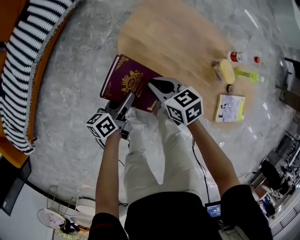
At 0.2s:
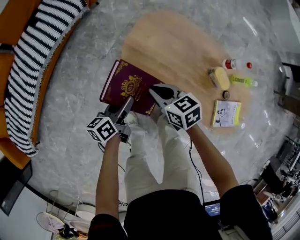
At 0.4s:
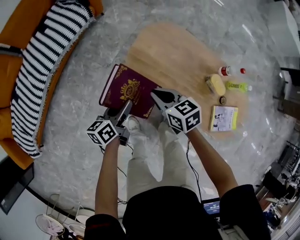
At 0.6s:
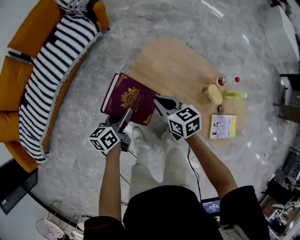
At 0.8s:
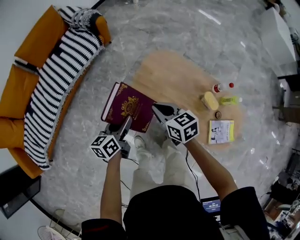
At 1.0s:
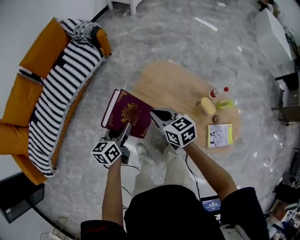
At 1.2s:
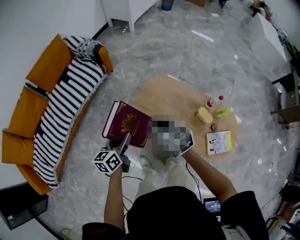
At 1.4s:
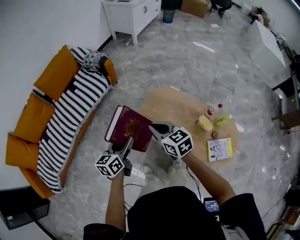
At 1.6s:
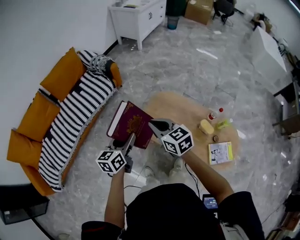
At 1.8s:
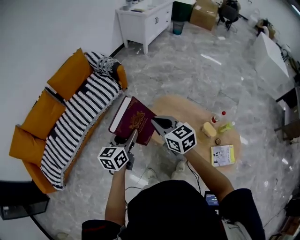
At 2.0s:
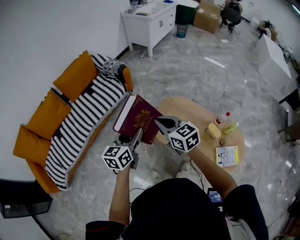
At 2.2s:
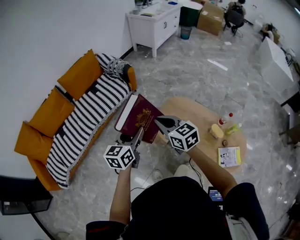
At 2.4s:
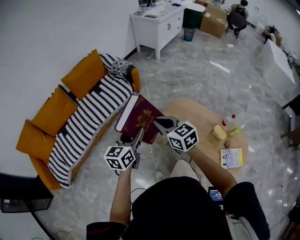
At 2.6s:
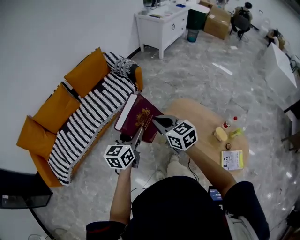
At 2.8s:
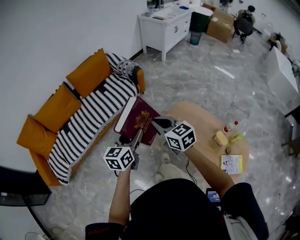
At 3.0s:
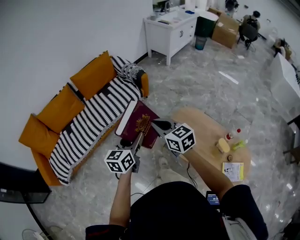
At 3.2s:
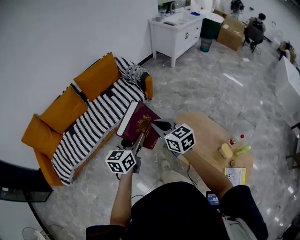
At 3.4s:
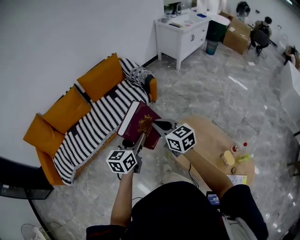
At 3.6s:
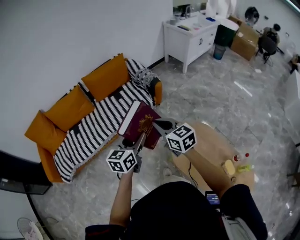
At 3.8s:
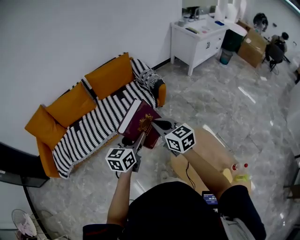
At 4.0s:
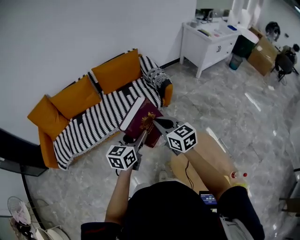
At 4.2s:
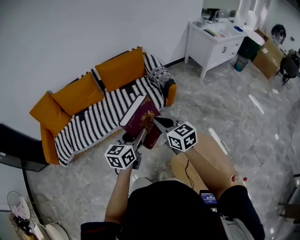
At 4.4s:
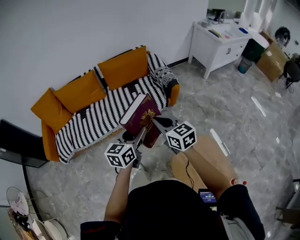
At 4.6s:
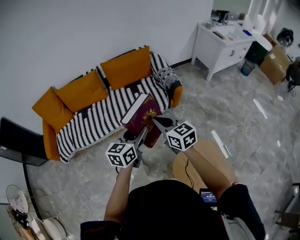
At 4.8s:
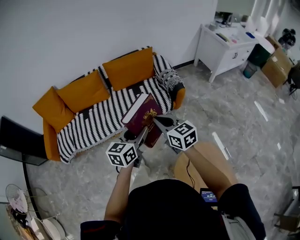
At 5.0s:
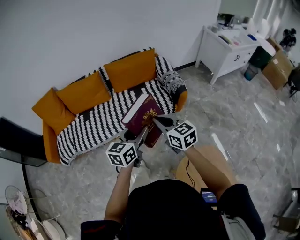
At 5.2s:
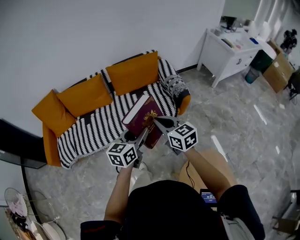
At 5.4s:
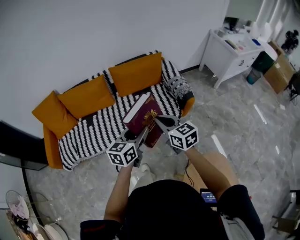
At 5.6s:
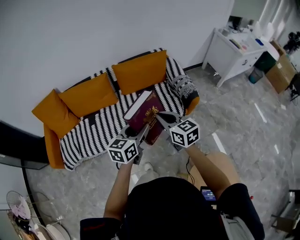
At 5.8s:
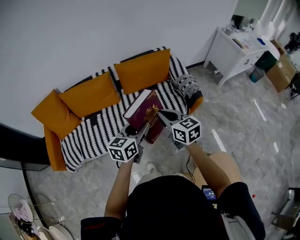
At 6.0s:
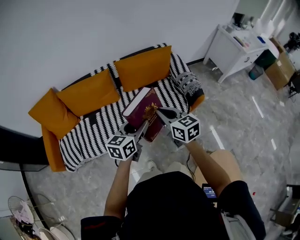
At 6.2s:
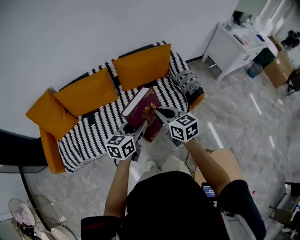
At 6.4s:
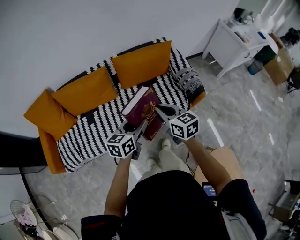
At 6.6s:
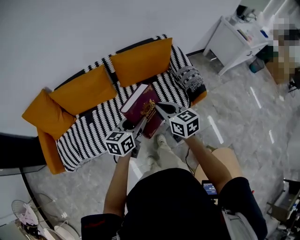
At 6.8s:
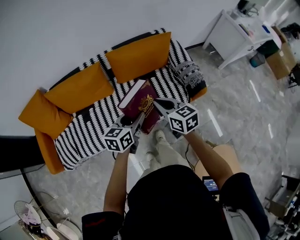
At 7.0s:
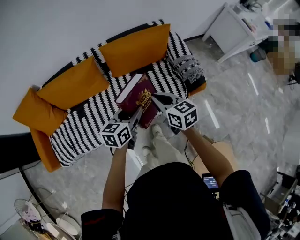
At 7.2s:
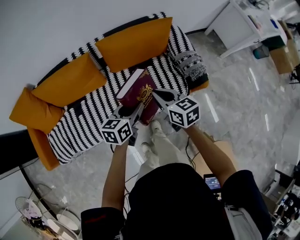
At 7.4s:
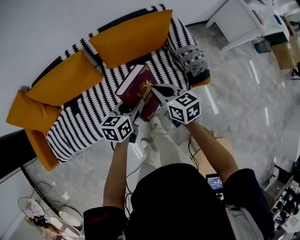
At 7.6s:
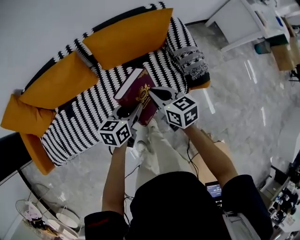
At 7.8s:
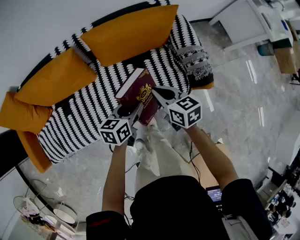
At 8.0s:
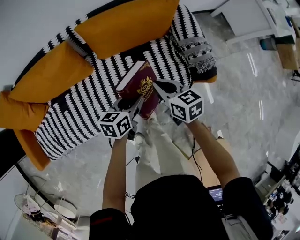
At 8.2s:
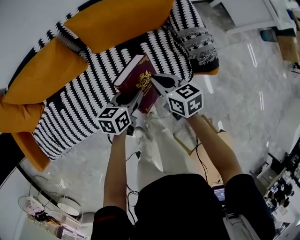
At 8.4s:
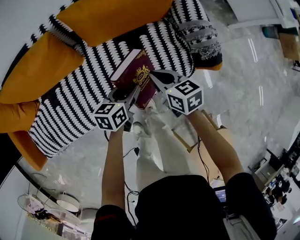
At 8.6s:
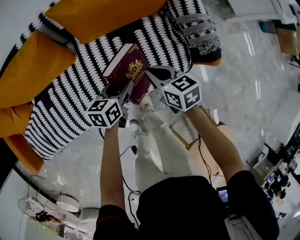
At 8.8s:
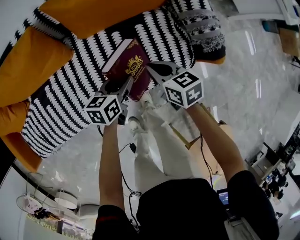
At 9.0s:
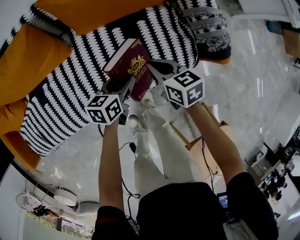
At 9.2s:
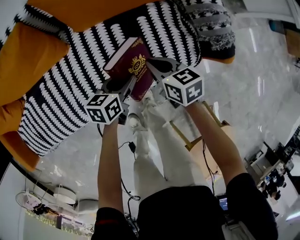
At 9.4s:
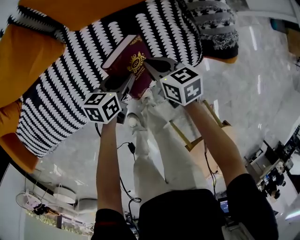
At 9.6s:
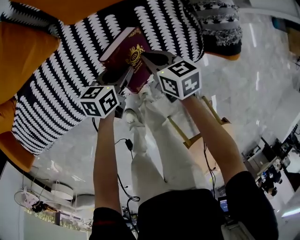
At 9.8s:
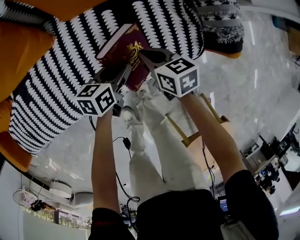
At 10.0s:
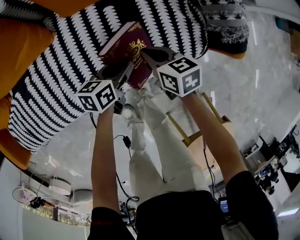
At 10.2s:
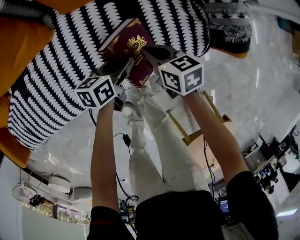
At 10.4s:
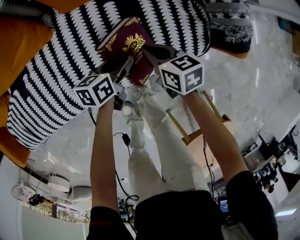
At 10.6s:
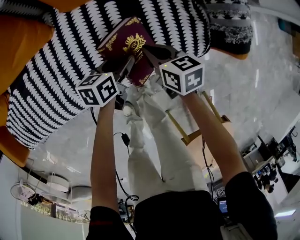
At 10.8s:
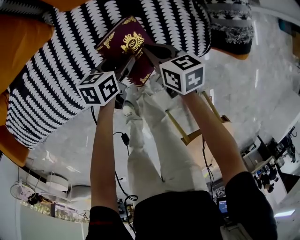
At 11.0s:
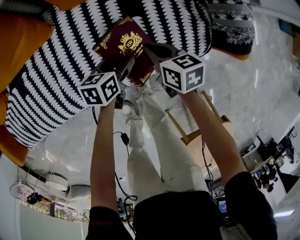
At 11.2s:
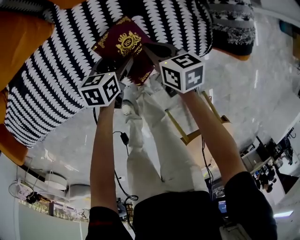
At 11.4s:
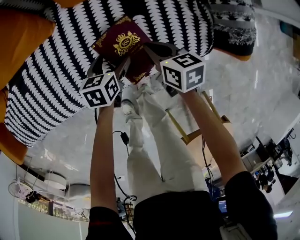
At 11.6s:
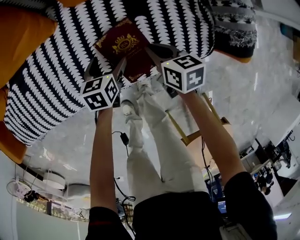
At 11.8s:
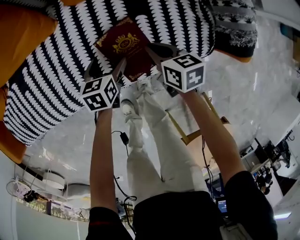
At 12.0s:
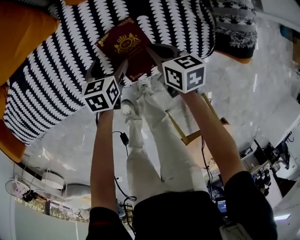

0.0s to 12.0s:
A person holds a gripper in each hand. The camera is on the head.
0.0s to 1.6s: The two grippers go about 35 cm upward. The right gripper changes its angle by roughly 30 degrees, while the left gripper swivels approximately 30 degrees.
1.6s to 3.0s: Both grippers move to the left and upward, approximately 15 cm.
3.0s to 4.4s: The grippers both shift forward by approximately 20 cm.
4.4s to 6.0s: The grippers both shift forward and to the left by some 35 cm.
6.0s to 7.6s: The two grippers go roughly 30 cm forward and downward.
7.6s to 9.0s: Both grippers travel together downward, about 20 cm.
9.0s to 10.4s: The grippers both shift downward by roughly 15 cm.
10.4s to 12.0s: The left gripper shifts about 10 cm to the left, rotates some 30 degrees, and opens up.

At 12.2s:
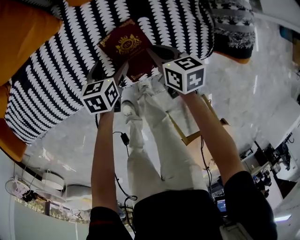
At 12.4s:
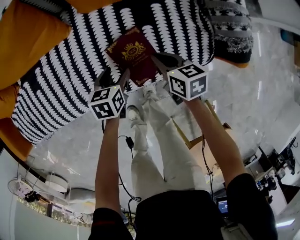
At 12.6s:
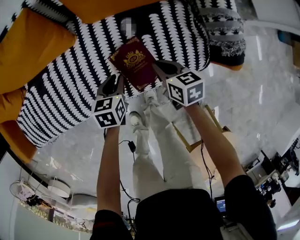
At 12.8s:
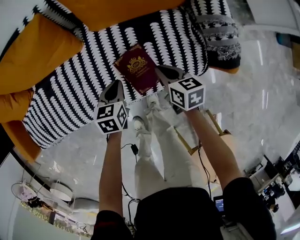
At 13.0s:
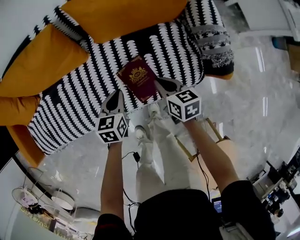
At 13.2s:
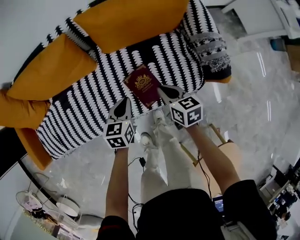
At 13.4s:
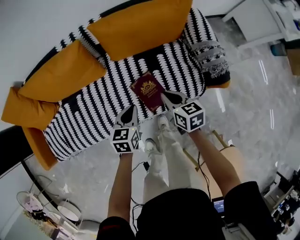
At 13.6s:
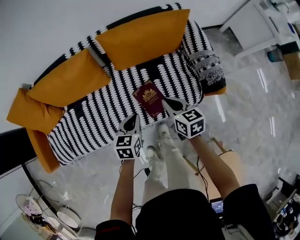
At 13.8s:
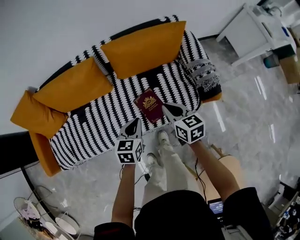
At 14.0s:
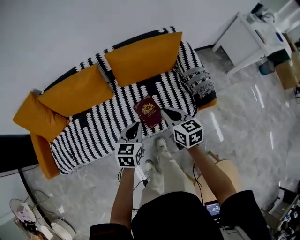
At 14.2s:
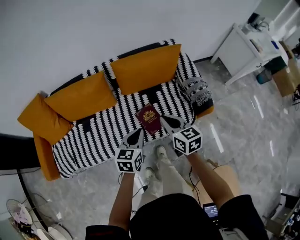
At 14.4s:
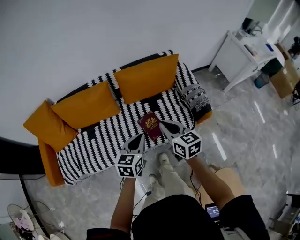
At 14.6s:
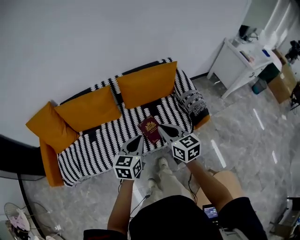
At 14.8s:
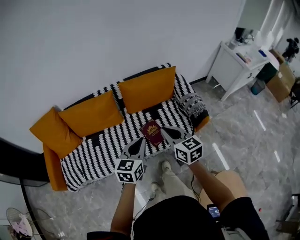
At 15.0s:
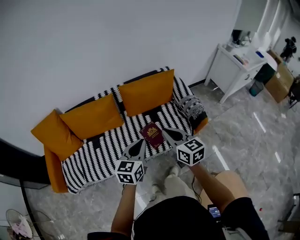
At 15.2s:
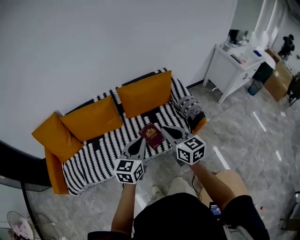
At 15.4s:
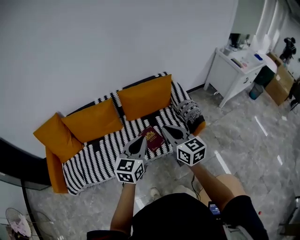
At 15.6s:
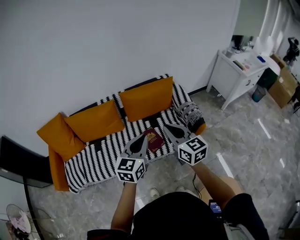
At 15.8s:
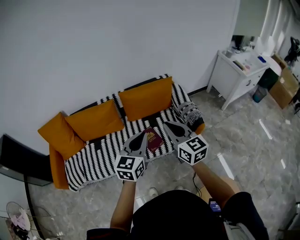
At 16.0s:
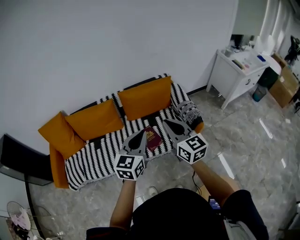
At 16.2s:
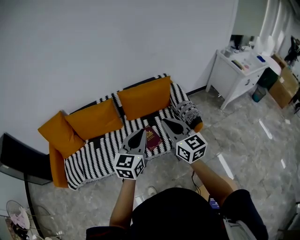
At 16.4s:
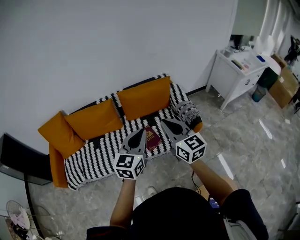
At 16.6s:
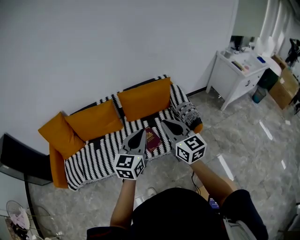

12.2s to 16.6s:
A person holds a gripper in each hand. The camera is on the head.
12.2s to 13.6s: Both grippers travel together upward, roughly 25 cm. The left gripper closes its fingers.
13.6s to 15.2s: The grippers both shift upward and backward by about 35 cm. The left gripper swivels roughly 30 degrees, while the right gripper rotates roughly 30 degrees.
15.2s to 16.6s: Both grippers move upward and to the right, some 10 cm.

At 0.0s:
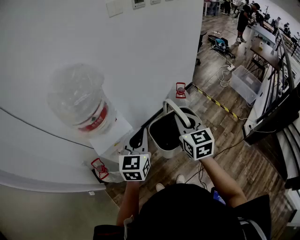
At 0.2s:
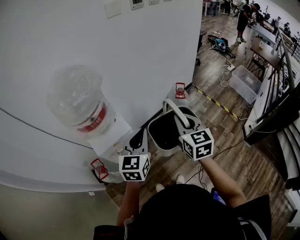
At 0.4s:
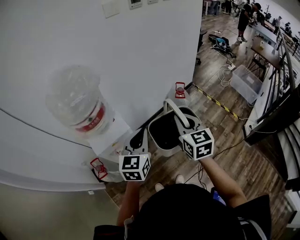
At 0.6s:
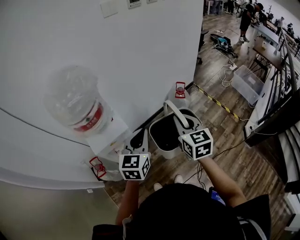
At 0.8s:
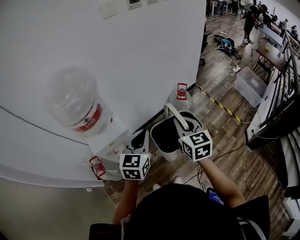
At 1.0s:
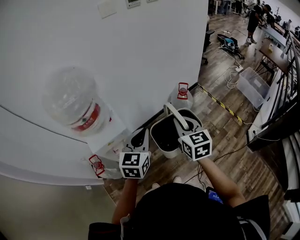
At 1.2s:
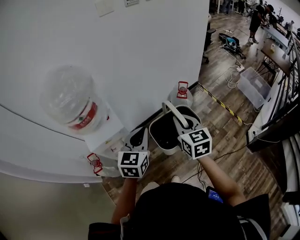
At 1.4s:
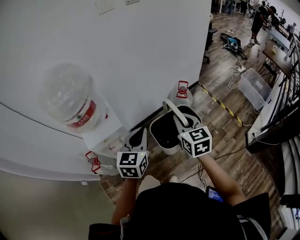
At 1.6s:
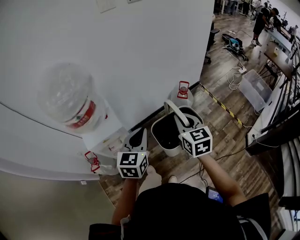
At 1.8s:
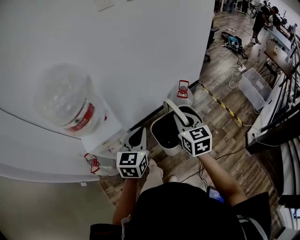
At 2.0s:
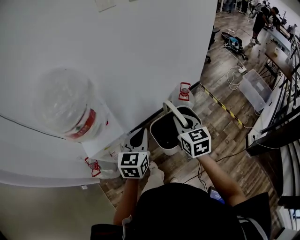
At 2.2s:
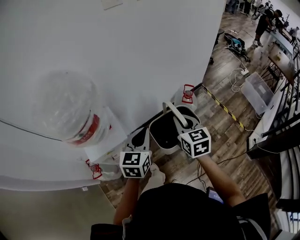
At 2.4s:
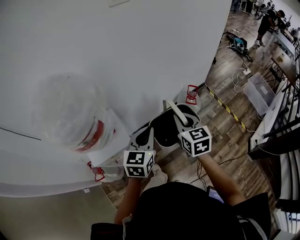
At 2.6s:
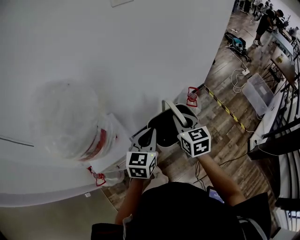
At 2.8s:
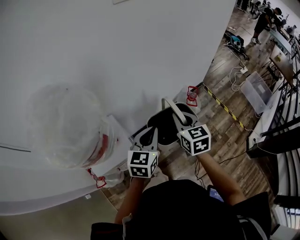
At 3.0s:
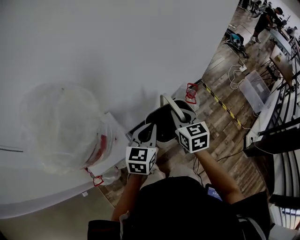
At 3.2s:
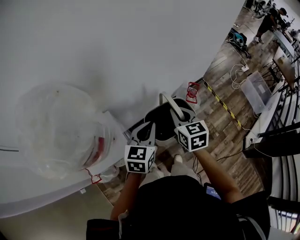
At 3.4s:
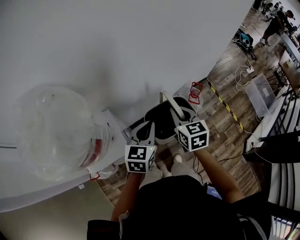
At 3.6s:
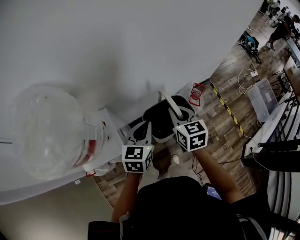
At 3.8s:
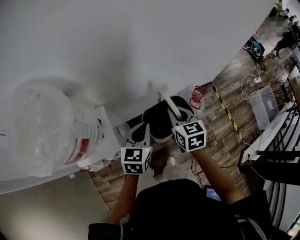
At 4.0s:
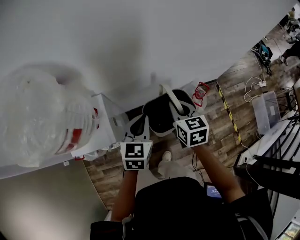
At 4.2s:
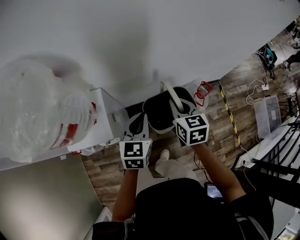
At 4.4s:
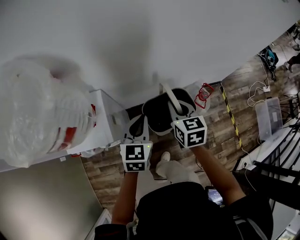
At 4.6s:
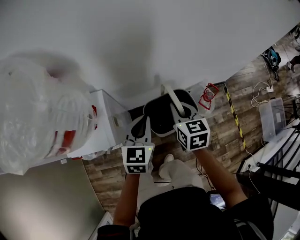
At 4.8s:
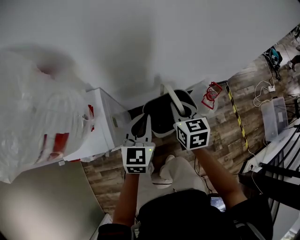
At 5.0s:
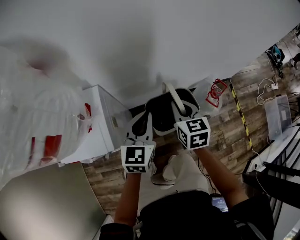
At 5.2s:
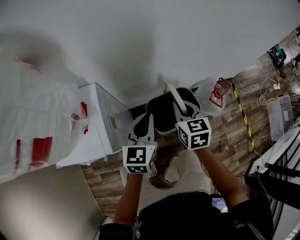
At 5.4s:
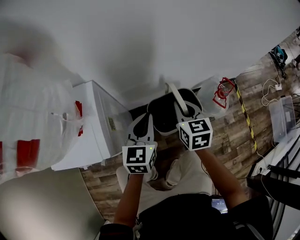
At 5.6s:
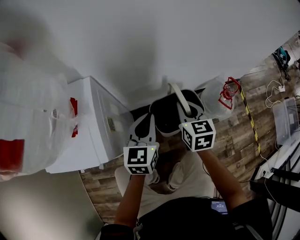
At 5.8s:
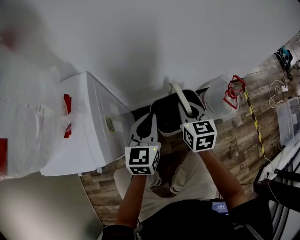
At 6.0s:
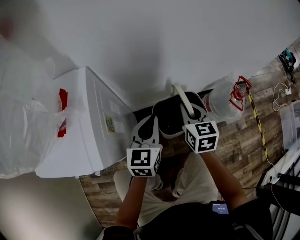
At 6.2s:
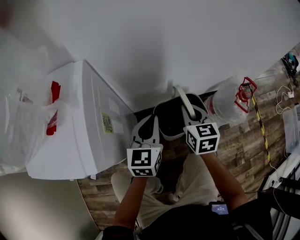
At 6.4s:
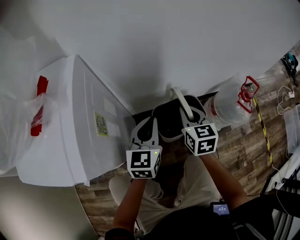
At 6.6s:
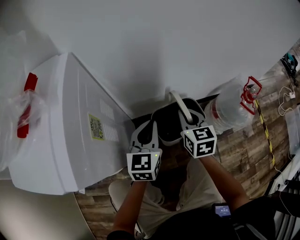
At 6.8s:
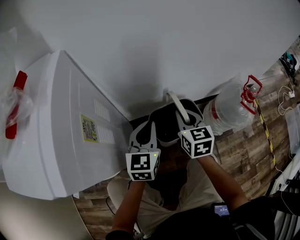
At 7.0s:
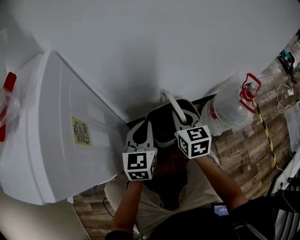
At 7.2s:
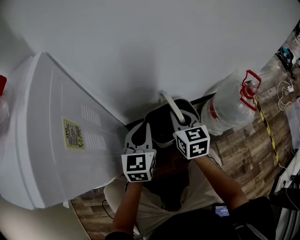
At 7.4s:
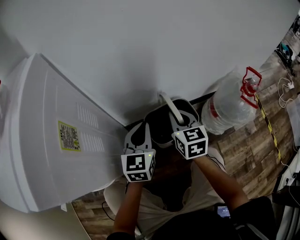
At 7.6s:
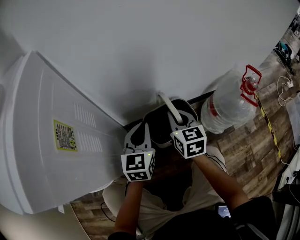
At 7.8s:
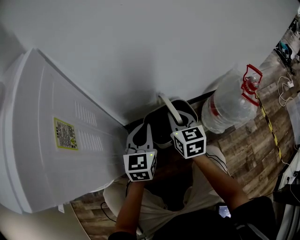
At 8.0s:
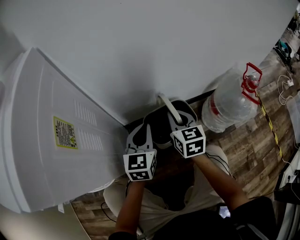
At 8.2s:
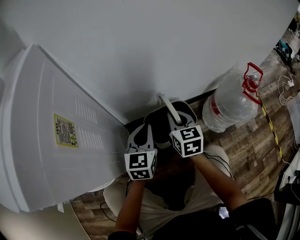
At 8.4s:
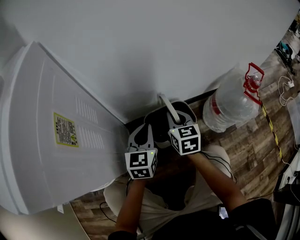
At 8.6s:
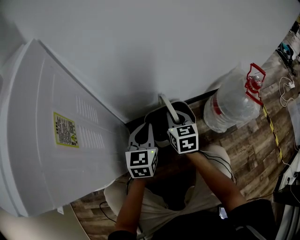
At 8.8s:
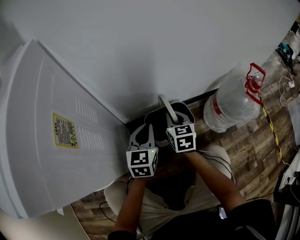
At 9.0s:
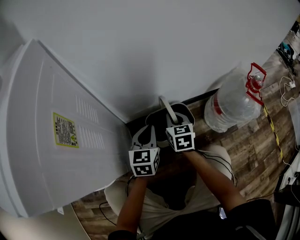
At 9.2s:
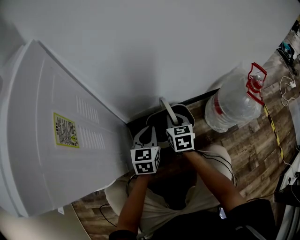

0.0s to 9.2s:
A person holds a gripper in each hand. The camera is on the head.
0.0s to 1.6s: The right gripper moves to the right, downward and forward, approximately 10 cm. The left gripper heads to the right, covering roughly 10 cm.
1.6s to 3.0s: The right gripper heads forward and to the left, covering roughly 25 cm. The left gripper is displaced forward by about 20 cm.
3.0s to 4.6s: The grippers both shift downward and forward by about 15 cm. The left gripper swivels approximately 20 degrees.
4.6s to 6.2s: Both grippers move downward, roughly 30 cm.
6.2s to 7.6s: Both grippers move downward, some 15 cm.
7.6s to 9.2s: The two grippers go some 10 cm downward.
